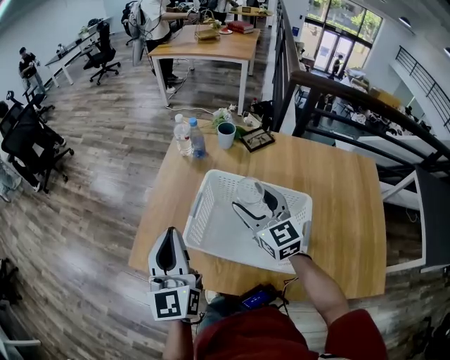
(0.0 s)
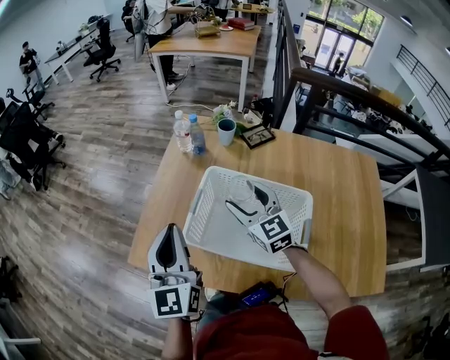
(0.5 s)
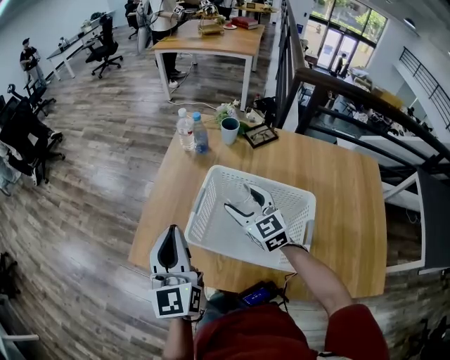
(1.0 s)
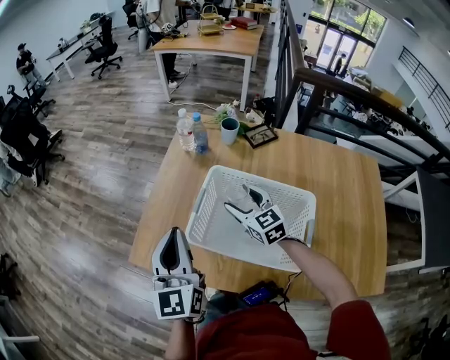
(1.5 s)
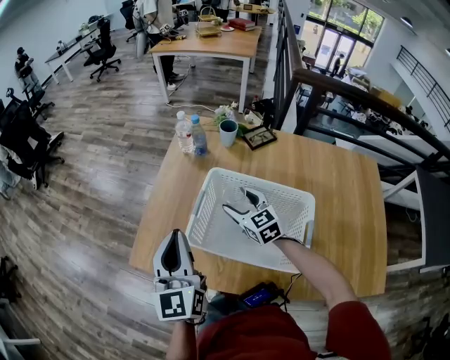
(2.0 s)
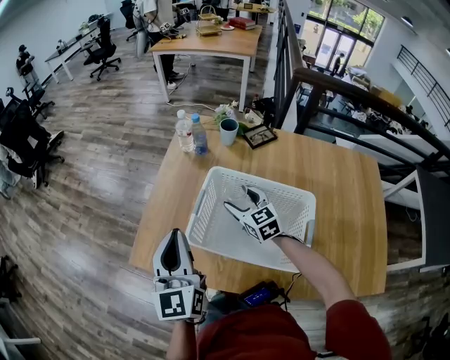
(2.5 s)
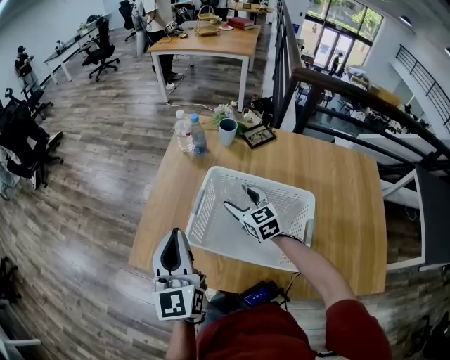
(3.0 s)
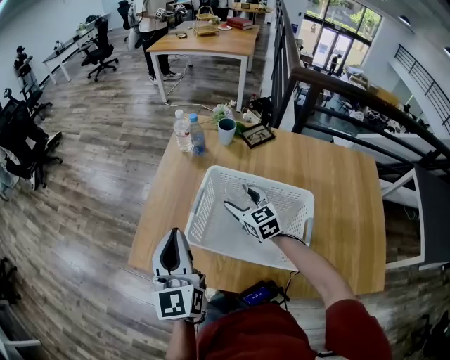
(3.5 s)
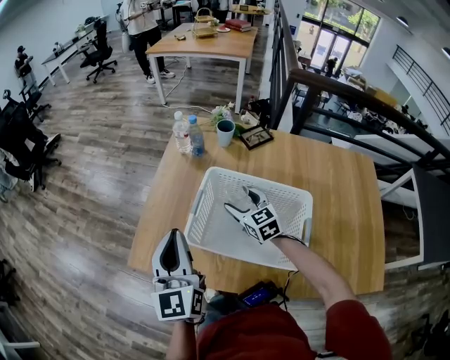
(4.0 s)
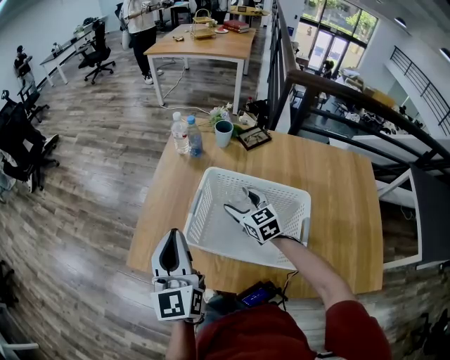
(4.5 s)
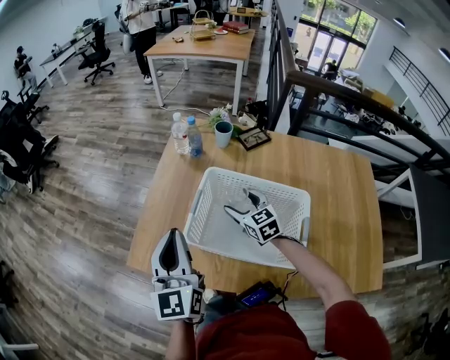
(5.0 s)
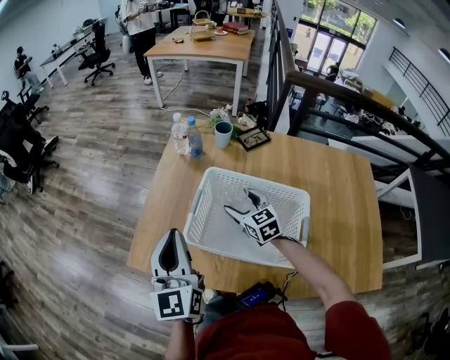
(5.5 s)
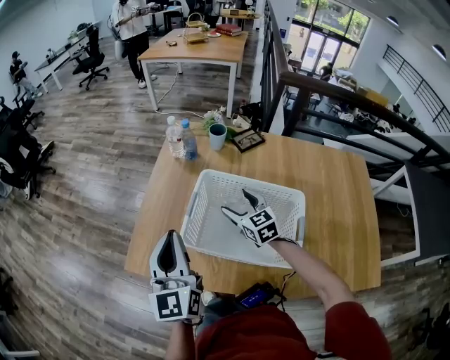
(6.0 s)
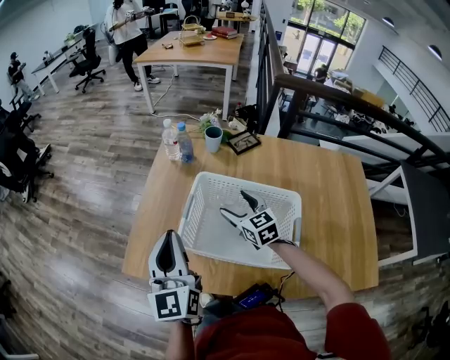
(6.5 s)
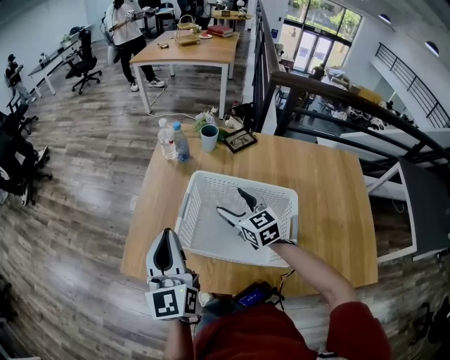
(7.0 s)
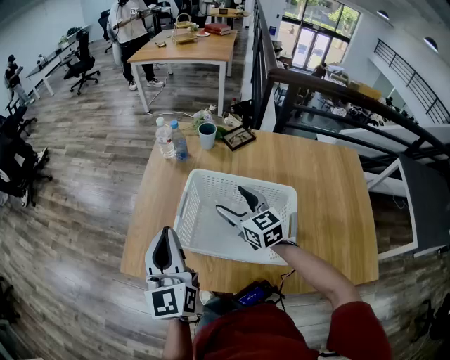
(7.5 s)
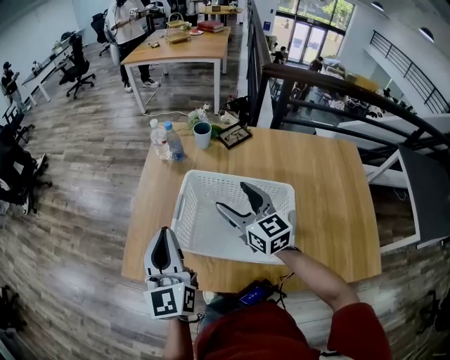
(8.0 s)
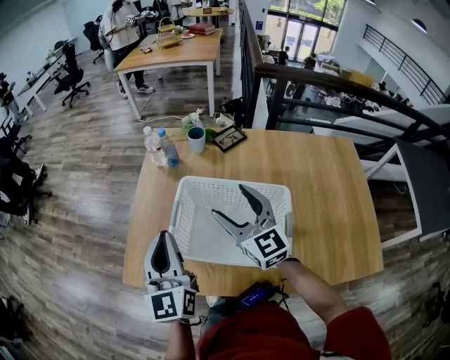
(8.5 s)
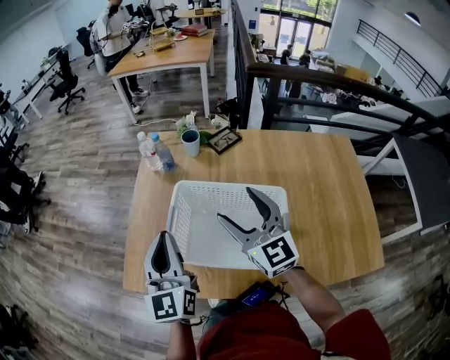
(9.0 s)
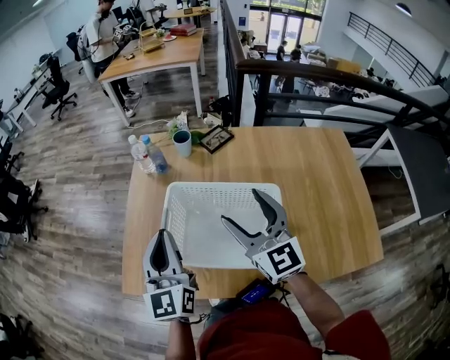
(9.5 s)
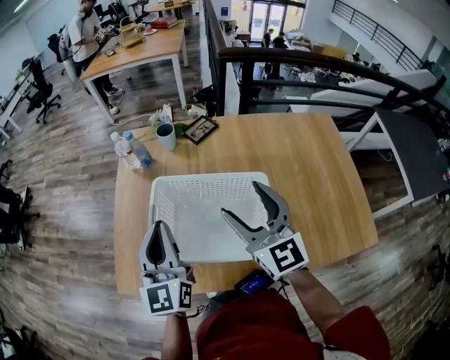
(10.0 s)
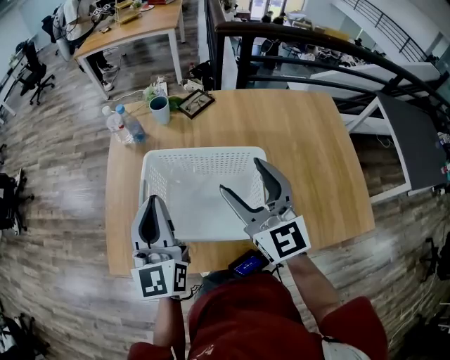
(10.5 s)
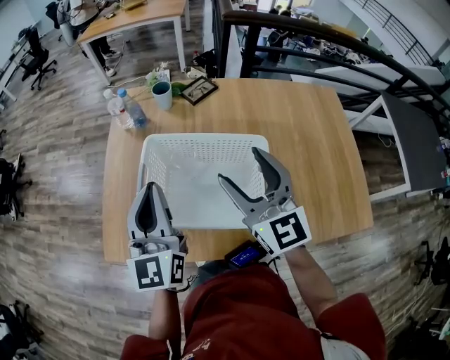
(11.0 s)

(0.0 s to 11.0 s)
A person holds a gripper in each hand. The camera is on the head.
0.0 s - 2.0 s: The right gripper shifts some 10 cm downward.
2.0 s - 5.5 s: The grippers move only a little.
5.5 s - 7.5 s: The right gripper shifts approximately 5 cm upward.
7.5 s - 9.0 s: The right gripper heads upward and backward, covering about 10 cm, and turns by approximately 20 degrees.
9.0 s - 11.0 s: The grippers both shift to the right by about 5 cm.

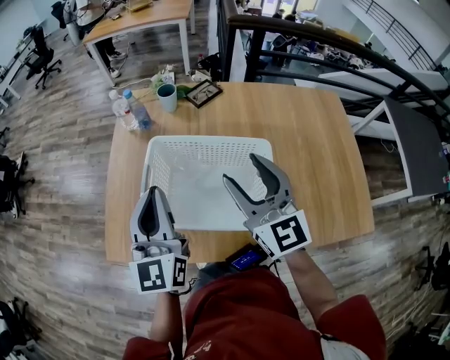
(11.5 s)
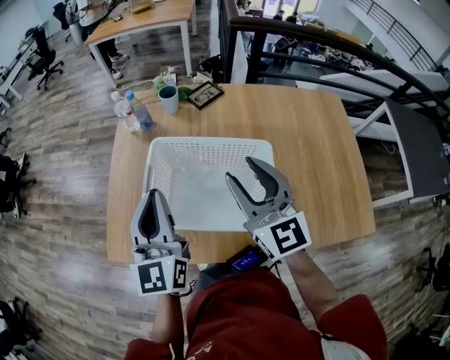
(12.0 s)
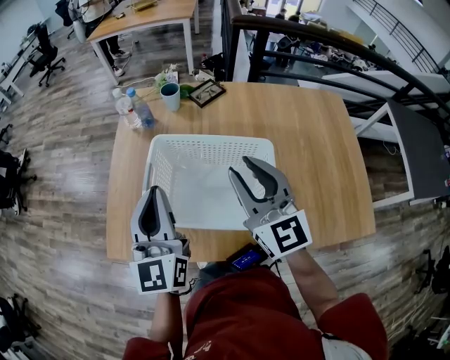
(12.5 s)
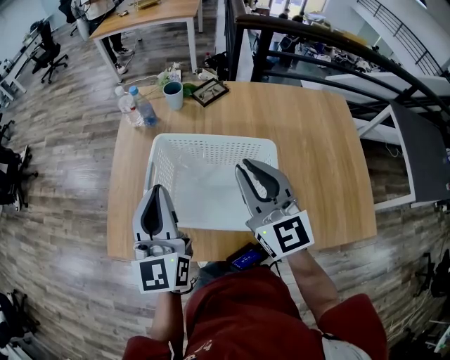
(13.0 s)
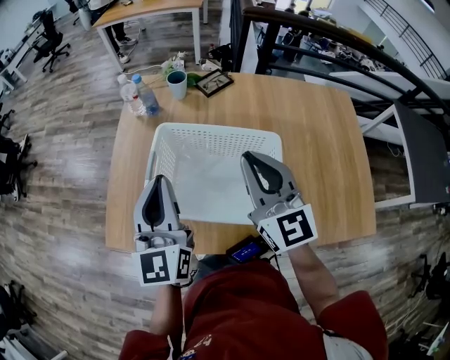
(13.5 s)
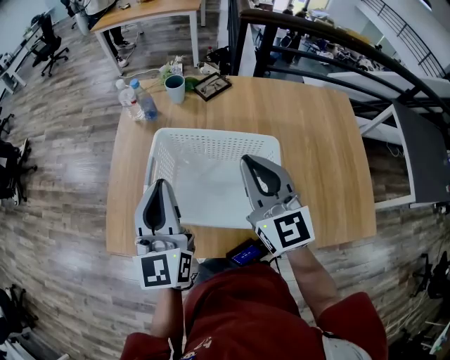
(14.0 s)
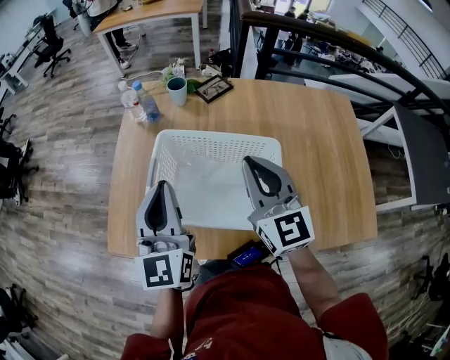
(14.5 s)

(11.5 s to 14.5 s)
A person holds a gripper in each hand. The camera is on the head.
11.5 s - 13.0 s: The right gripper closes.
13.0 s - 14.5 s: There are only small adjustments of the grippers.

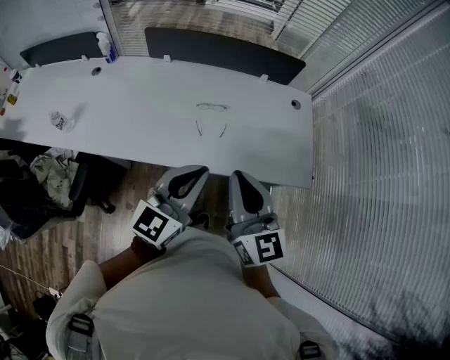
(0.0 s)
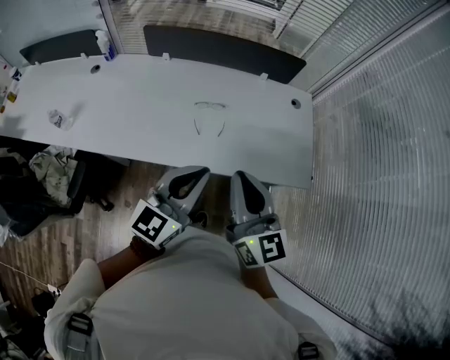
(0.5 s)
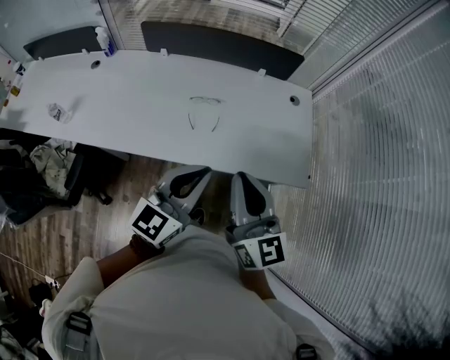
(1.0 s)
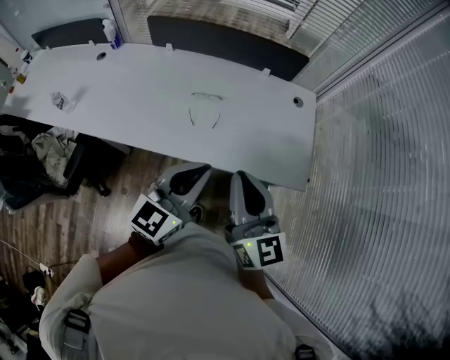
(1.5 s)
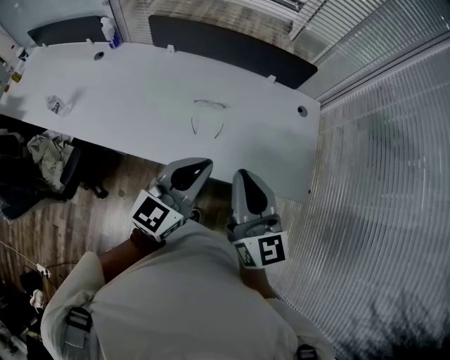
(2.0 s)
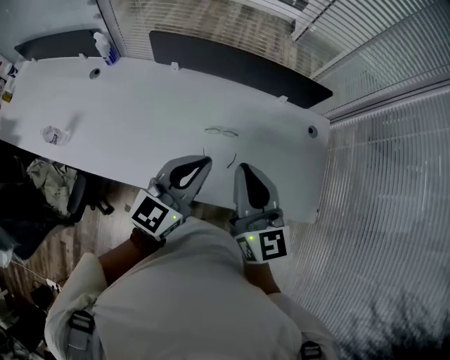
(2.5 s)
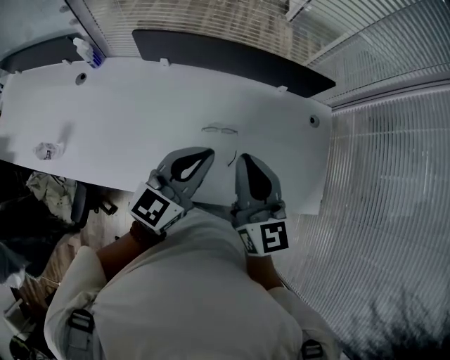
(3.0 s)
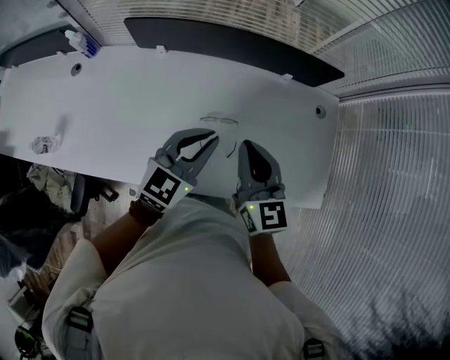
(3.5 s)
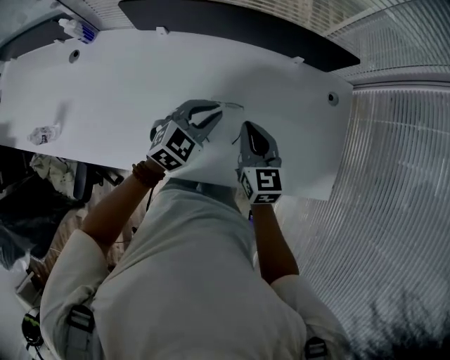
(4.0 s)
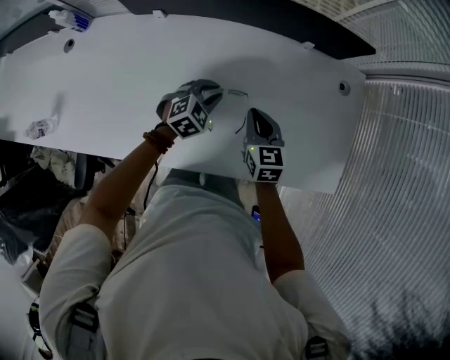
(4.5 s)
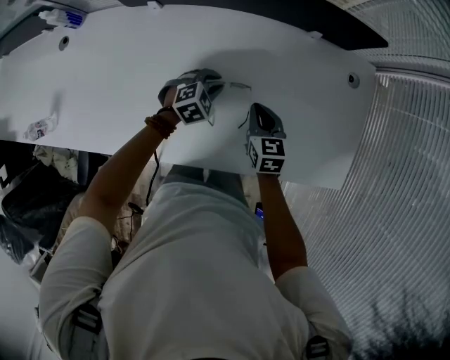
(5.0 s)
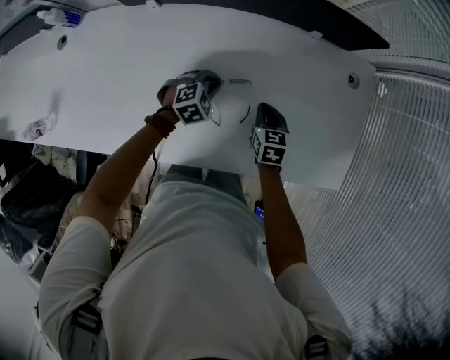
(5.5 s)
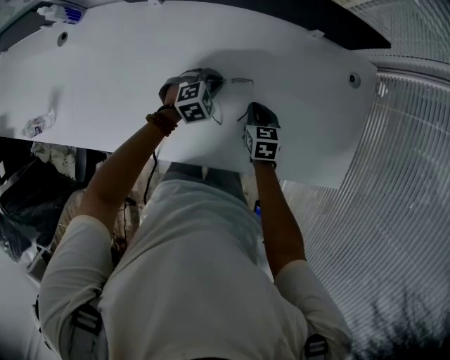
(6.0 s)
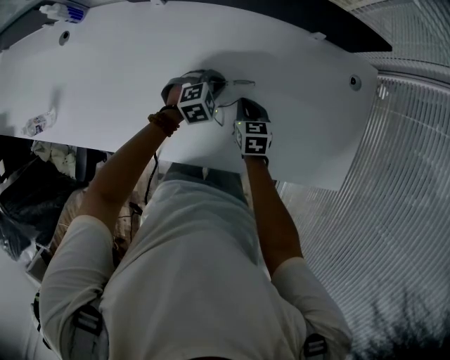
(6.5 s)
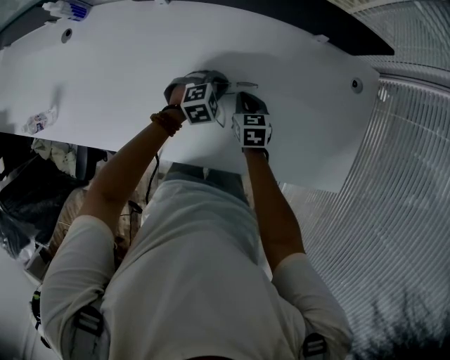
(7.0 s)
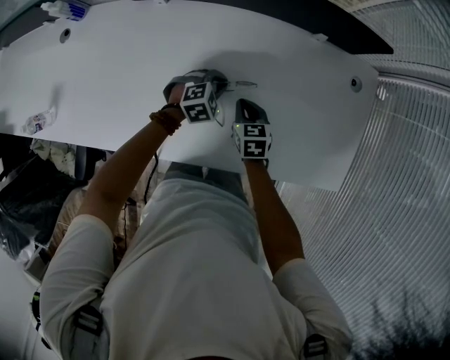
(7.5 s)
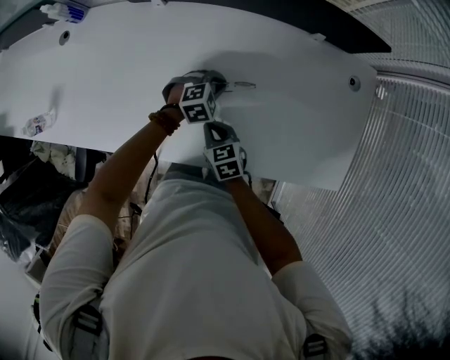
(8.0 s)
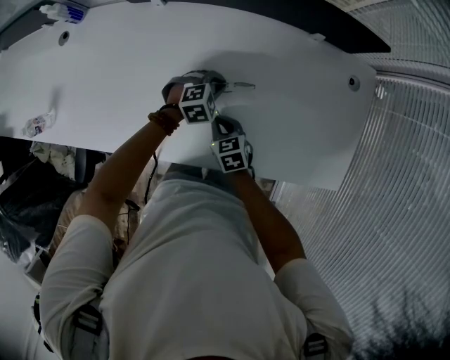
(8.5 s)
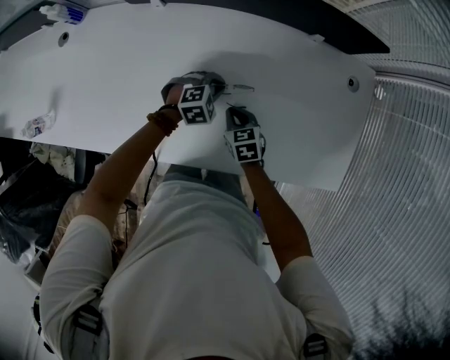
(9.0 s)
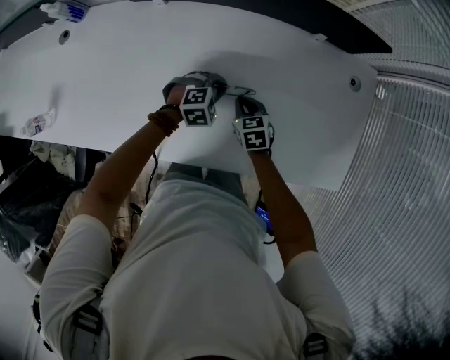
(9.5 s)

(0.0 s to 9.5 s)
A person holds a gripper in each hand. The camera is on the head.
0.0 s - 2.0 s: Both grippers move forward, roughly 5 cm.
2.0 s - 4.0 s: The grippers both shift forward and downward by roughly 30 cm. The right gripper rotates about 30 degrees. Meanwhile the left gripper angles its fingers downward, by some 30 degrees.
4.0 s - 5.5 s: Both grippers move downward, about 20 cm. The left gripper turns by approximately 30 degrees. Meanwhile the right gripper swivels approximately 20 degrees.
5.5 s - 7.5 s: The right gripper goes about 10 cm to the left.
7.5 s - 9.5 s: The right gripper goes backward and returns, roughly 10 cm each way.

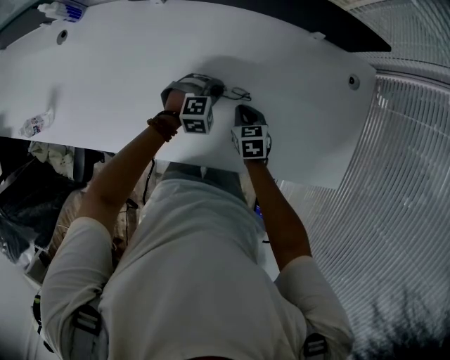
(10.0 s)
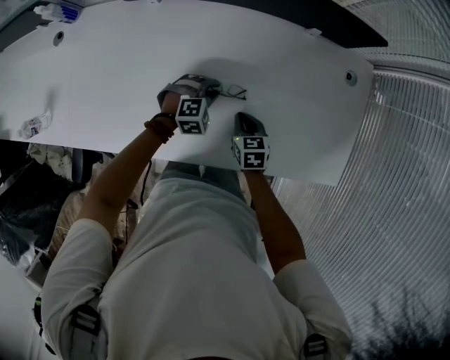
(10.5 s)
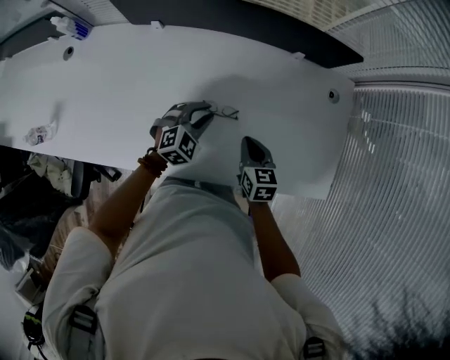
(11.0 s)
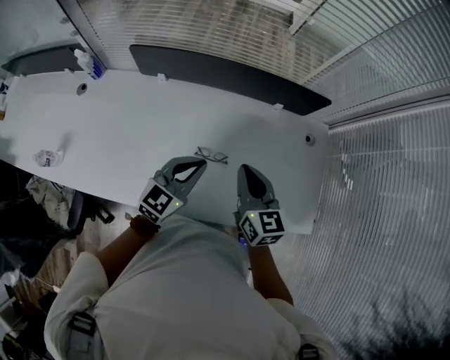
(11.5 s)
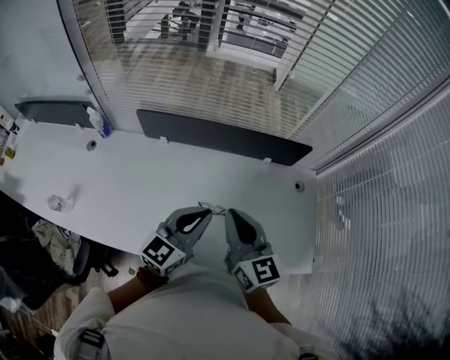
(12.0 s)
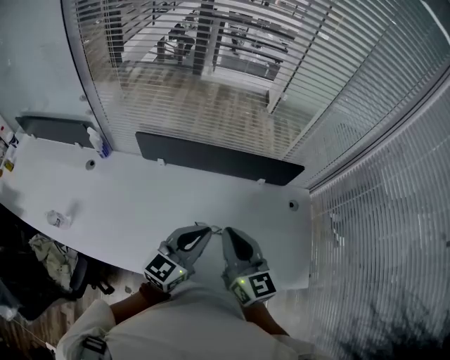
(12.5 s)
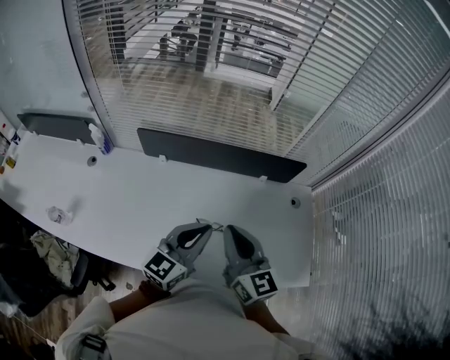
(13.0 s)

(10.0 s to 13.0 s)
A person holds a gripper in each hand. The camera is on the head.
10.0 s - 11.5 s: The grippers both shift upward by roughly 30 cm. The right gripper points its fingers approximately 40 degrees further upward; the left gripper tips its fingers upward by approximately 50 degrees.
11.5 s - 13.0 s: Both grippers travel together upward, some 10 cm.
